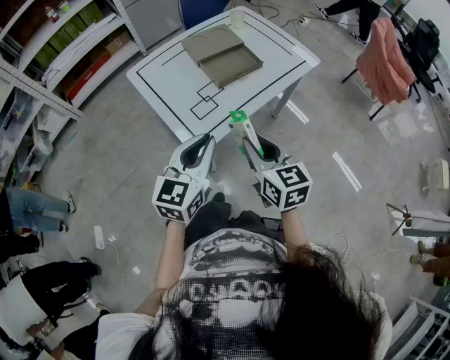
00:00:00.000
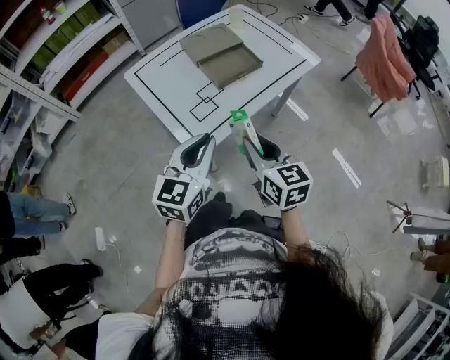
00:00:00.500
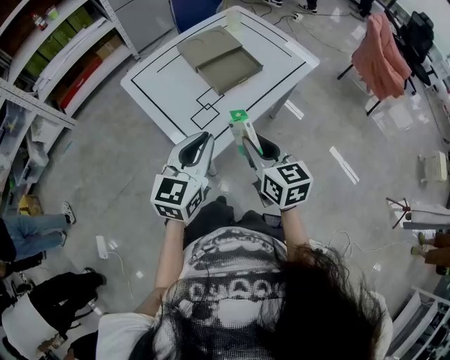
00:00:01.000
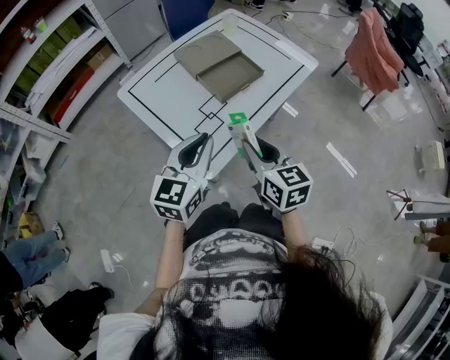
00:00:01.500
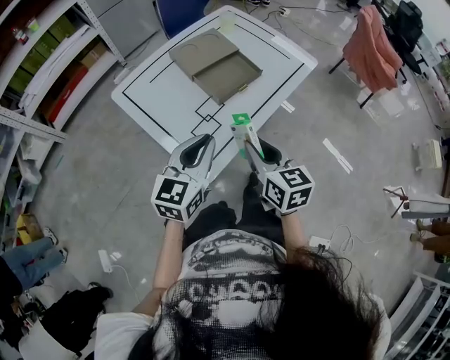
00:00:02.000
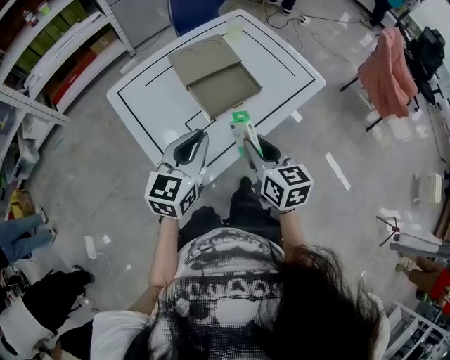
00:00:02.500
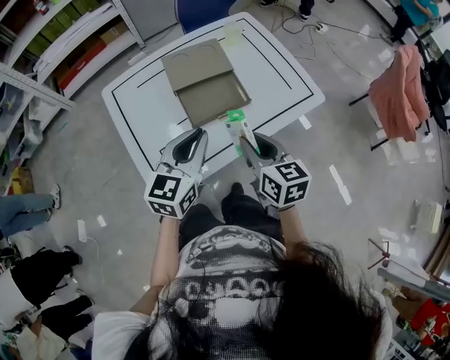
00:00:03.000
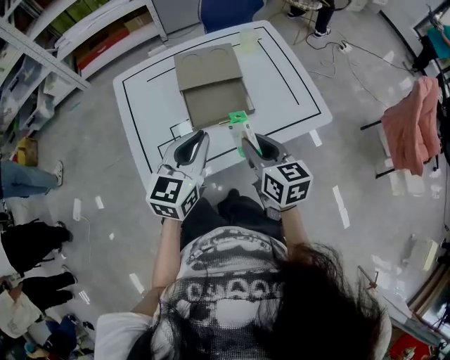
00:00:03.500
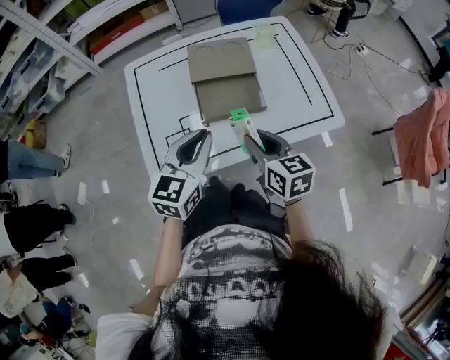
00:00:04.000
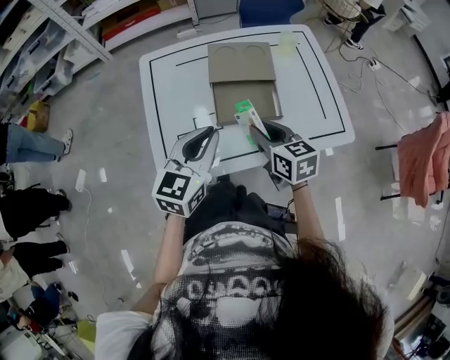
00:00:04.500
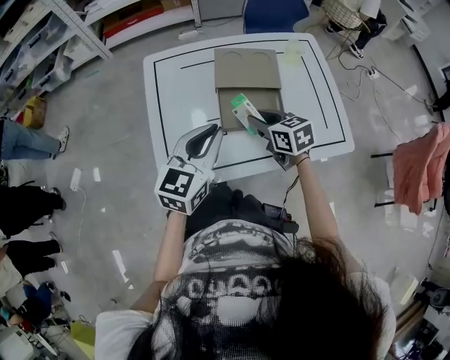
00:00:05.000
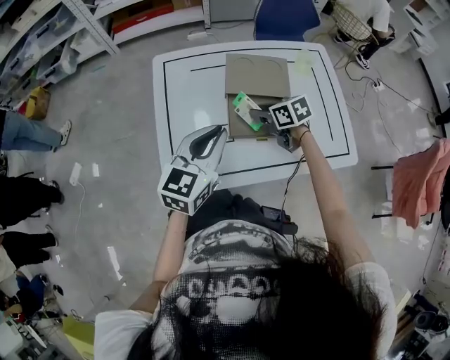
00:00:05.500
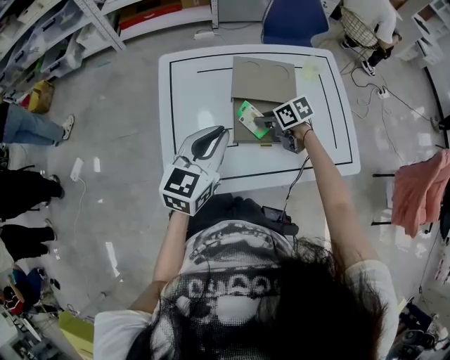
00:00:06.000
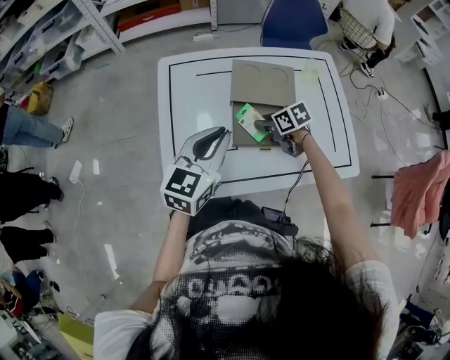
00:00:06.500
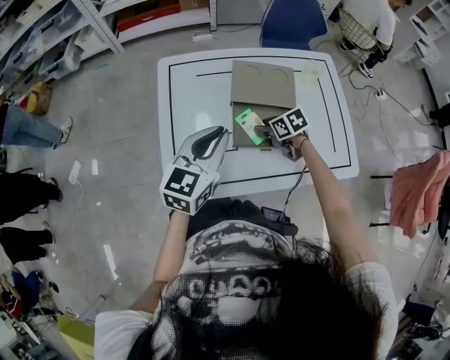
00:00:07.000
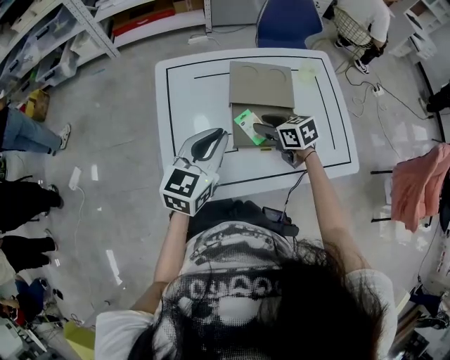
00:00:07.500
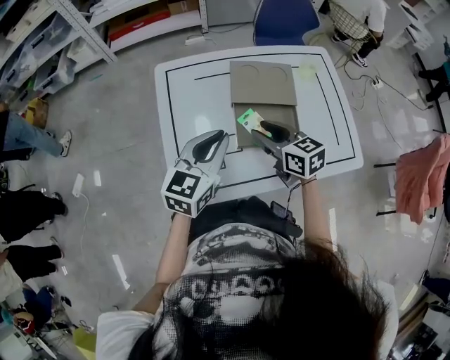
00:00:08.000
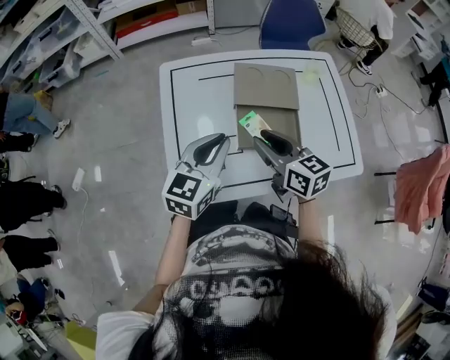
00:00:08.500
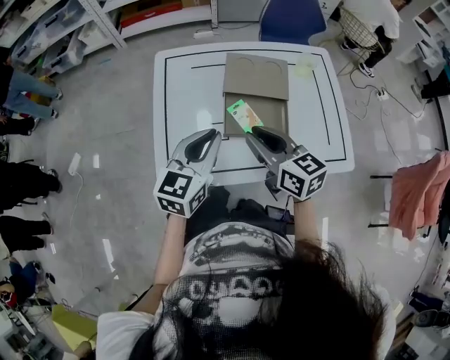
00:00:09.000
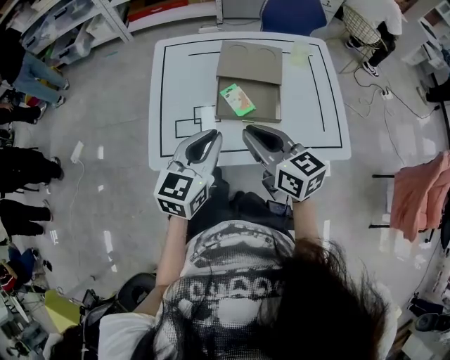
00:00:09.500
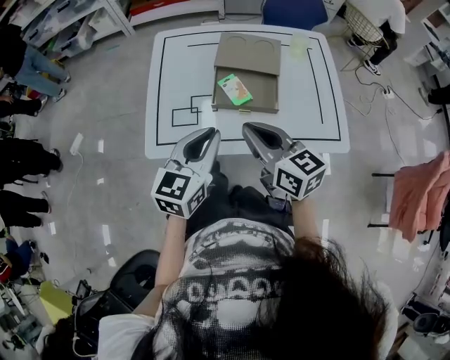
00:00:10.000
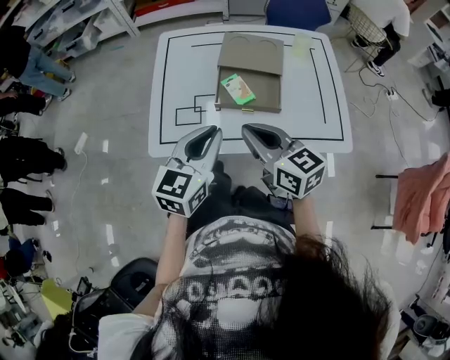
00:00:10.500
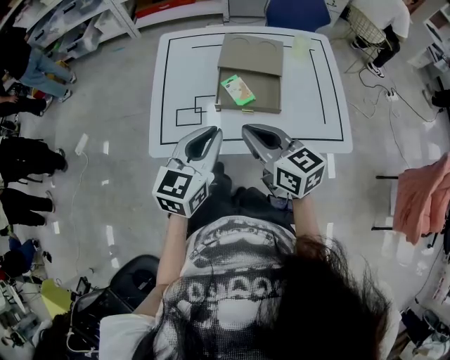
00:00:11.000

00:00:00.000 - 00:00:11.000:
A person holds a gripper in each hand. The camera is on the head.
00:00:00.000 - 00:00:02.000: The grippers both shift forward by some 10 cm.
00:00:02.000 - 00:00:03.500: The left gripper moves some 25 cm, and rotates approximately 30 degrees. The right gripper ends up about 25 cm from where it was, and turns by roughly 30 degrees.
00:00:03.500 - 00:00:05.500: The right gripper moves roughly 25 cm, and swivels approximately 40 degrees, while the left gripper ends up some 10 cm from where it was.
00:00:05.500 - 00:00:07.500: The right gripper opens up.
00:00:07.500 - 00:00:09.000: The right gripper is displaced upward and backward by some 15 cm, rotates roughly 30 degrees, and closes its fingers; the left gripper changes place by approximately 5 cm.
00:00:09.000 - 00:00:11.000: The two grippers go about 10 cm backward.

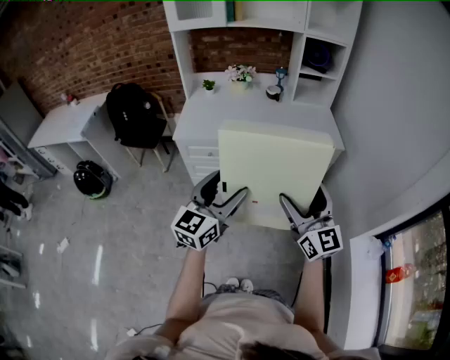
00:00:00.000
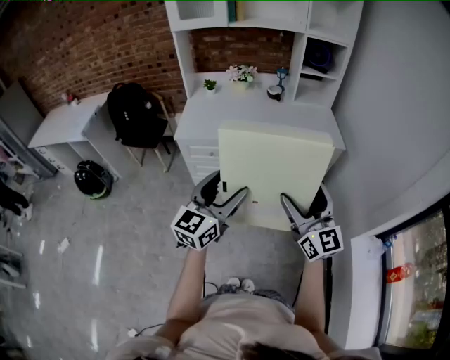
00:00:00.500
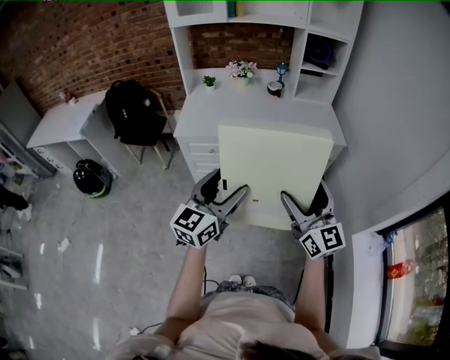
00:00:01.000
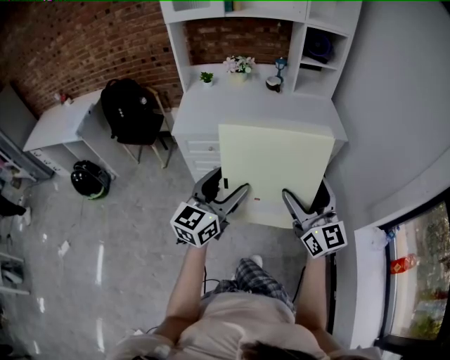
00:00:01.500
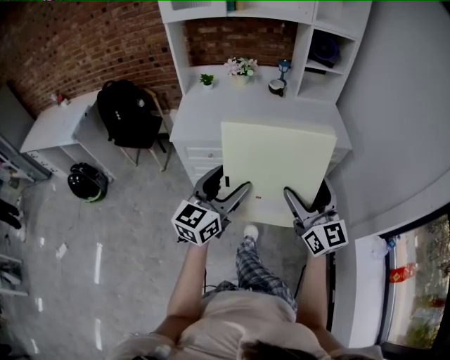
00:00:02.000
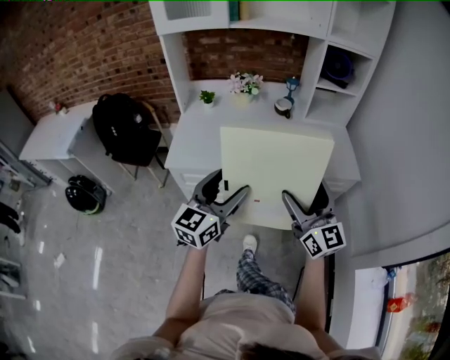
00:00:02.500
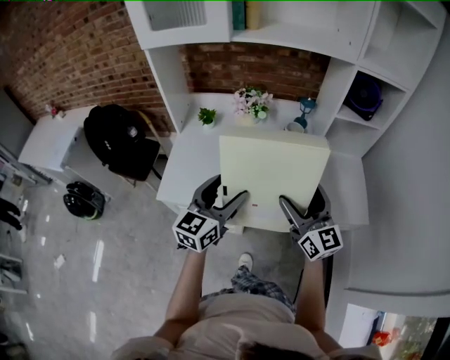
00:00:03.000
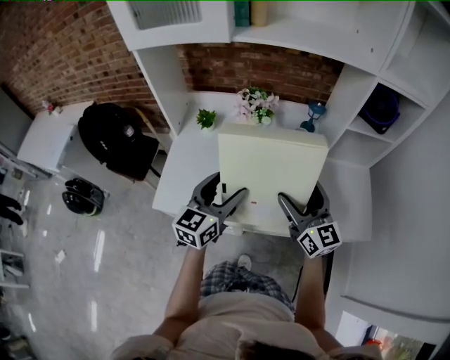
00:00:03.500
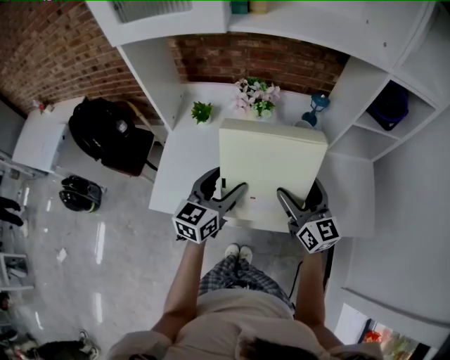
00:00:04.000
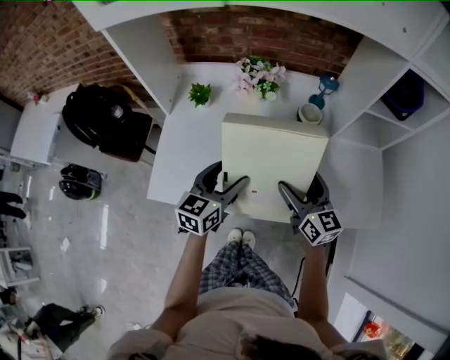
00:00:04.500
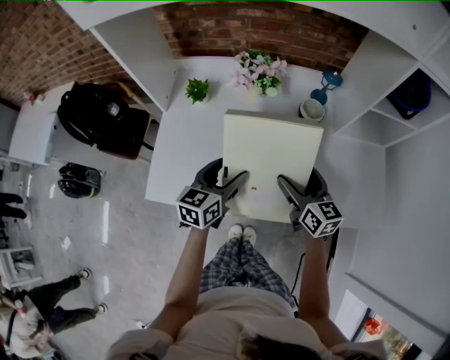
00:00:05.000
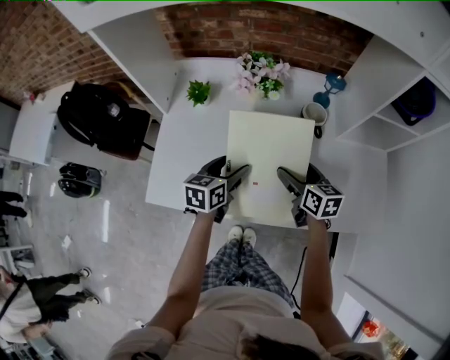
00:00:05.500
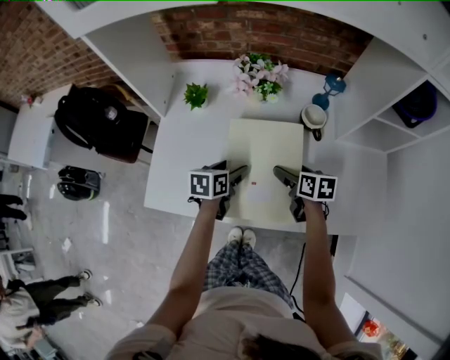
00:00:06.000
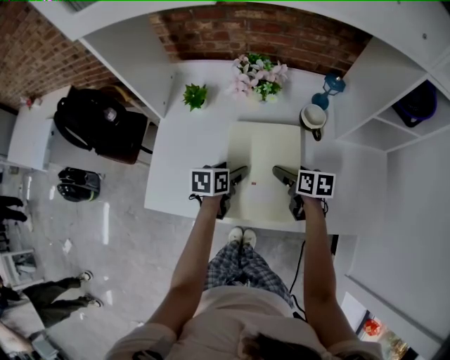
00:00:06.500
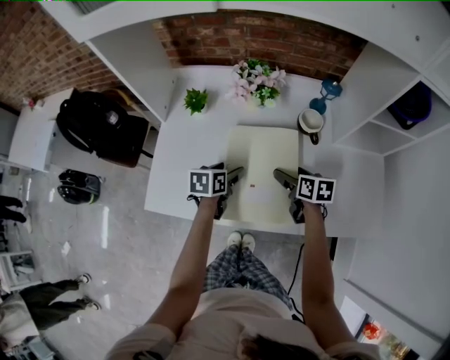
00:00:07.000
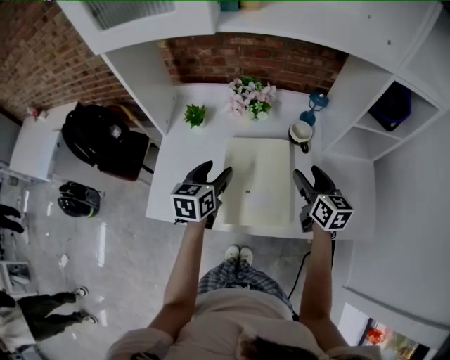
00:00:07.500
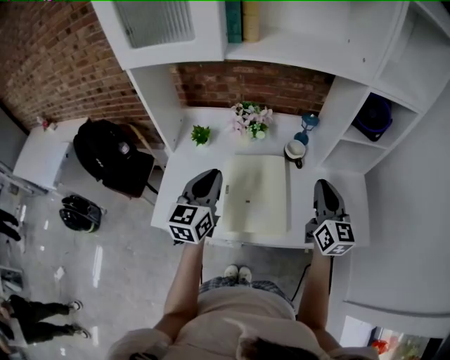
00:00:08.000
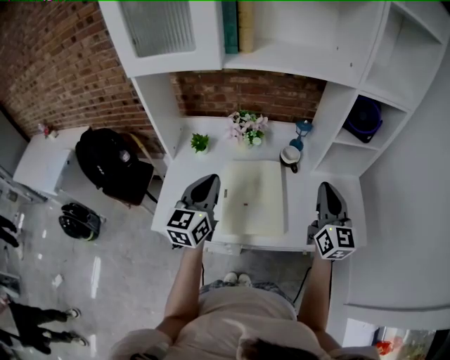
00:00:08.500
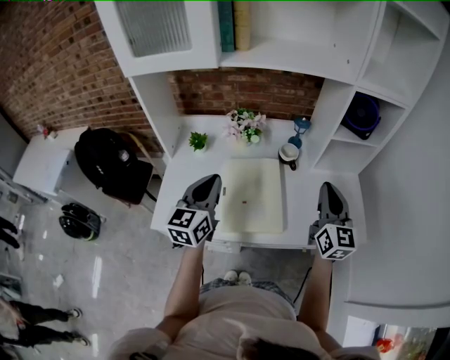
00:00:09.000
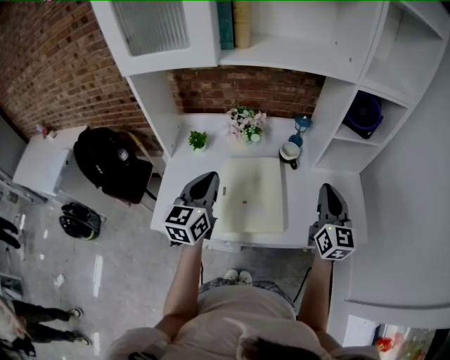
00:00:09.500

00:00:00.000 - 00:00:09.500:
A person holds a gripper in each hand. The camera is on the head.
00:00:00.000 - 00:00:02.000: The grippers both shift forward by about 10 cm.
00:00:02.000 - 00:00:04.000: The two grippers travel together, forward, about 50 cm.
00:00:04.000 - 00:00:05.500: Both grippers move downward and forward, roughly 15 cm. The left gripper rotates about 30 degrees. Meanwhile the right gripper turns by roughly 30 degrees.
00:00:05.500 - 00:00:07.500: The left gripper heads upward, covering some 10 cm. Meanwhile the right gripper moves upward and to the right, about 10 cm.
00:00:07.500 - 00:00:09.500: The left gripper travels upward and backward by approximately 15 cm, swivels roughly 30 degrees, and closes; the right gripper heads upward, backward and to the right, covering roughly 20 cm, turns by some 30 degrees, and closes.

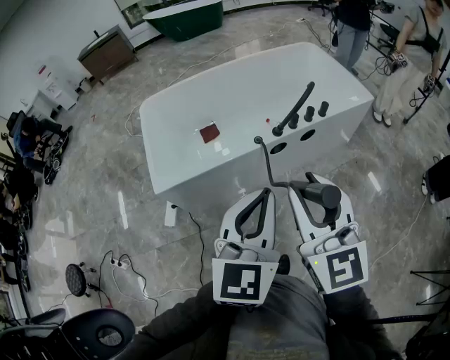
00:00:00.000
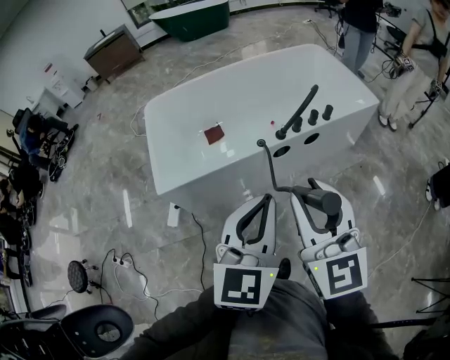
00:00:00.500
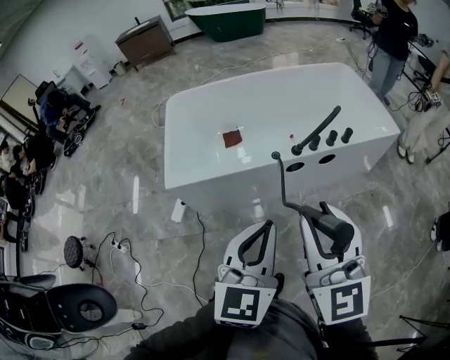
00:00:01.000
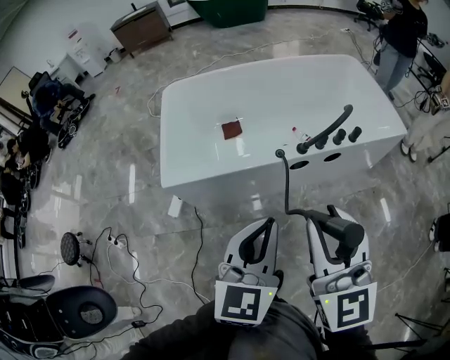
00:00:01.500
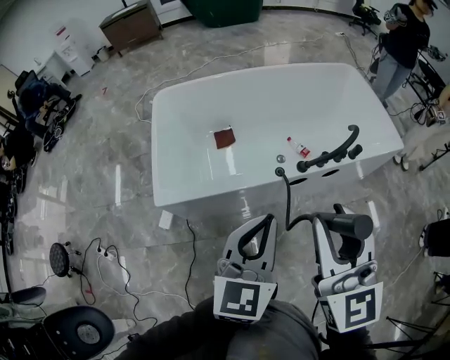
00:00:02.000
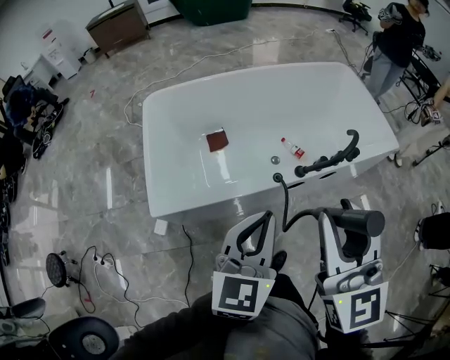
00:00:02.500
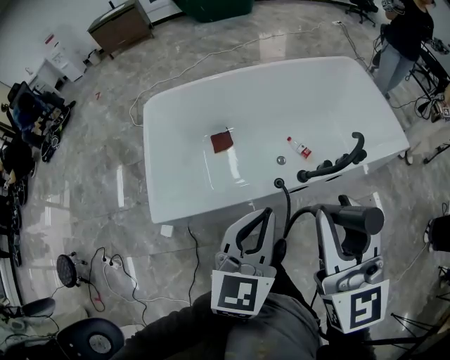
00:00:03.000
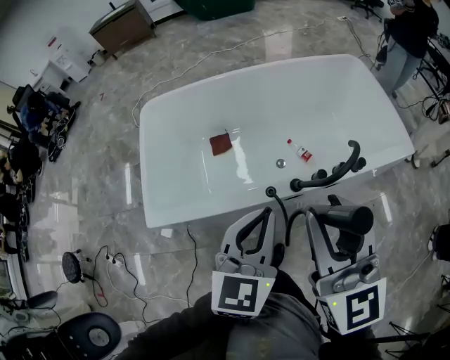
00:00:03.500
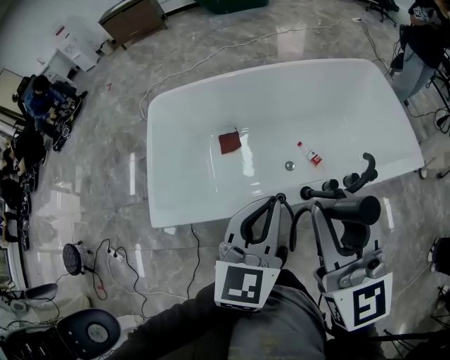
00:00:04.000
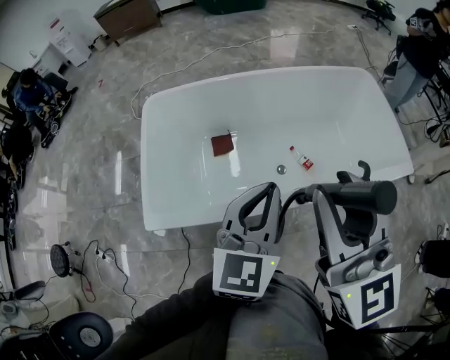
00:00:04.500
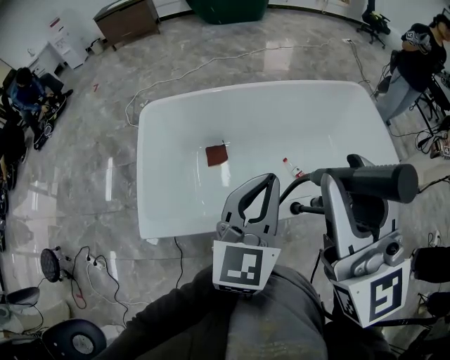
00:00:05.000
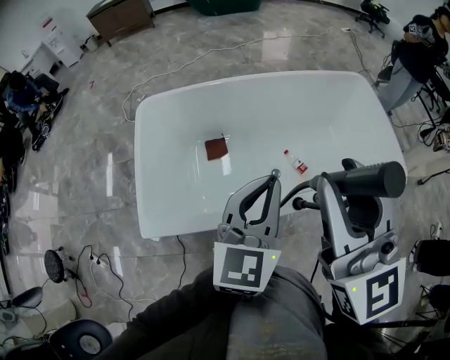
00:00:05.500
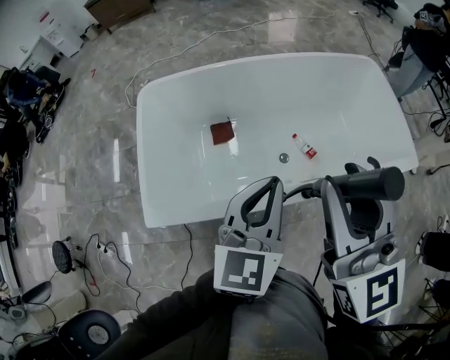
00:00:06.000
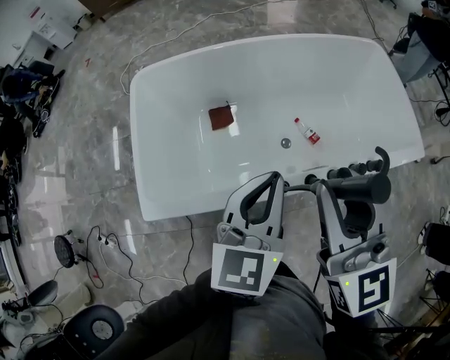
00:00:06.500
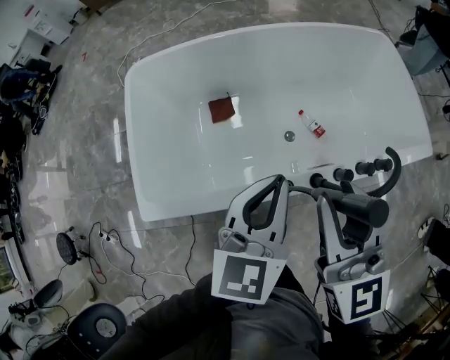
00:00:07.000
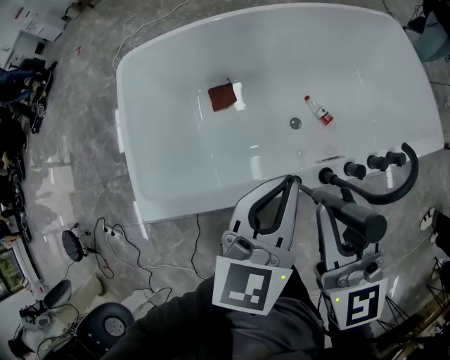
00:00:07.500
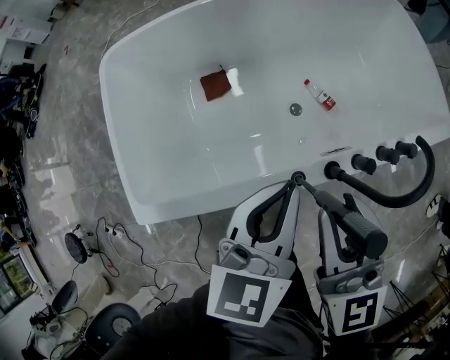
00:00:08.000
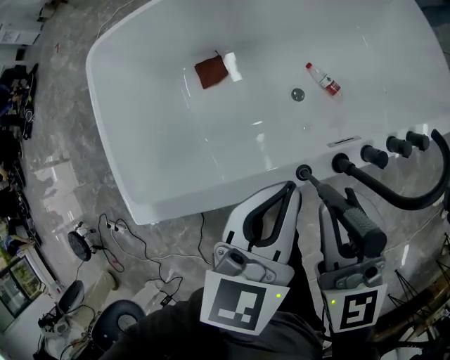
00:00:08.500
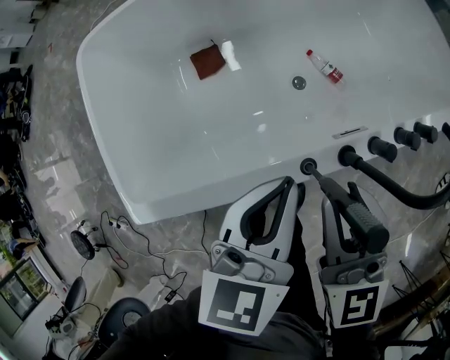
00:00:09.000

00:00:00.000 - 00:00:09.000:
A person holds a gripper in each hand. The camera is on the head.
00:00:00.000 - 00:00:02.000: The left gripper moves forward and downward, about 15 cm. The right gripper is displaced forward by some 15 cm.
00:00:02.000 - 00:00:04.500: The two grippers go roughly 20 cm forward.
00:00:04.500 - 00:00:07.000: The left gripper moves downward and forward, about 10 cm. Meanwhile the right gripper moves downward and forward, some 15 cm.
00:00:07.000 - 00:00:09.000: Both grippers move downward, about 15 cm.
